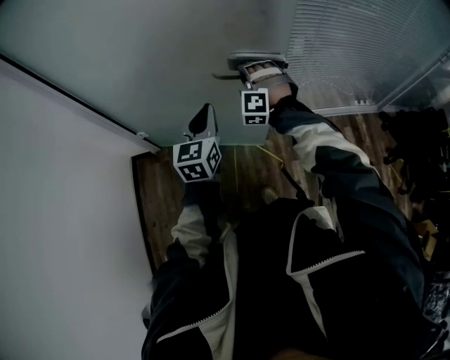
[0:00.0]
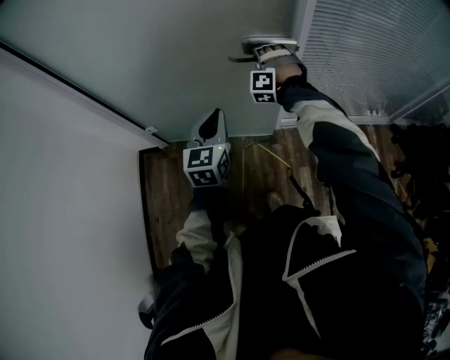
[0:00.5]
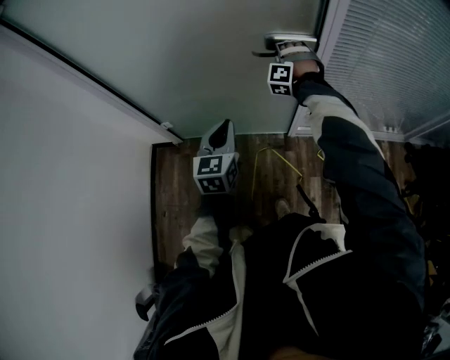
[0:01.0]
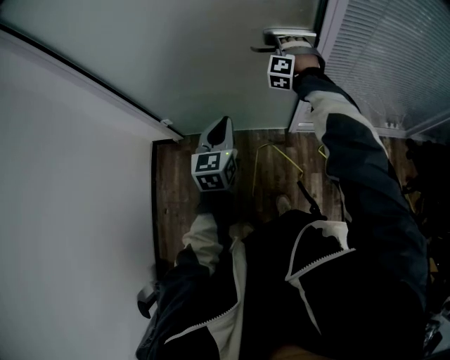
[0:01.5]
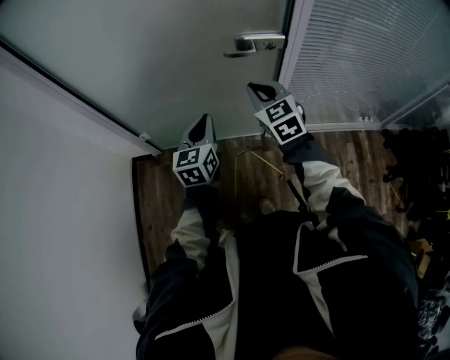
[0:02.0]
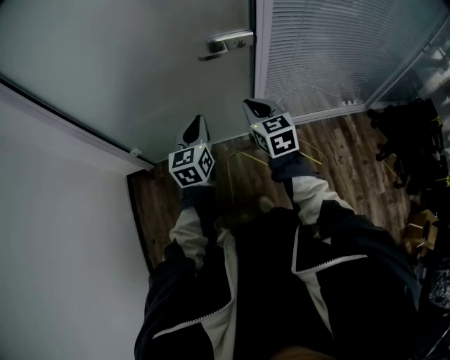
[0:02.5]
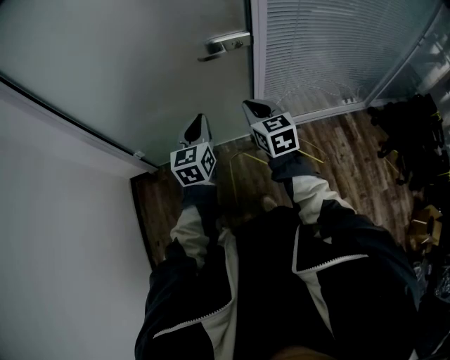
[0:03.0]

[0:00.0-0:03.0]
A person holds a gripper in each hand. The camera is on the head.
0:00.0 to 0:01.5: The right gripper heads forward, covering about 15 cm. Meanwhile the left gripper shifts by some 5 cm.
0:01.5 to 0:03.0: The left gripper ends up some 5 cm from where it was. Meanwhile the right gripper moves backward, some 30 cm, rolls clockwise, seen from behind, by about 90 degrees, and closes.

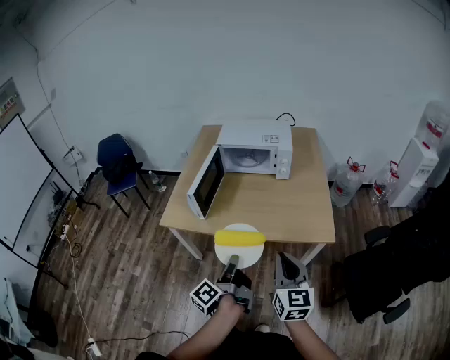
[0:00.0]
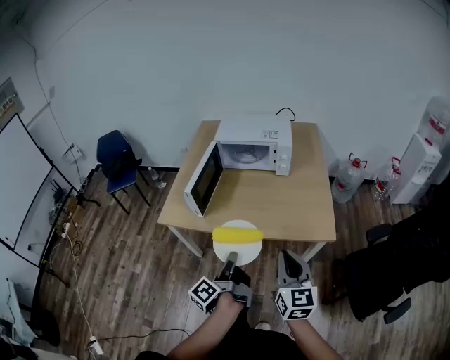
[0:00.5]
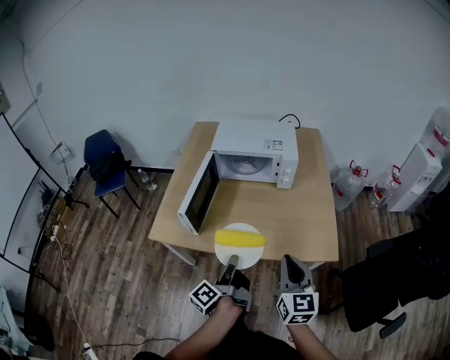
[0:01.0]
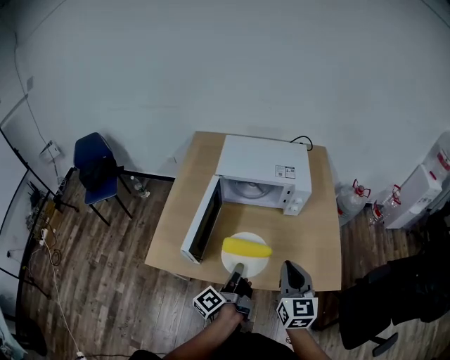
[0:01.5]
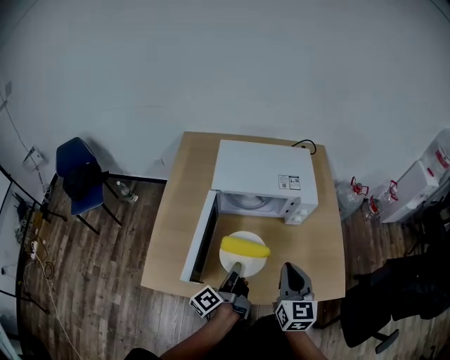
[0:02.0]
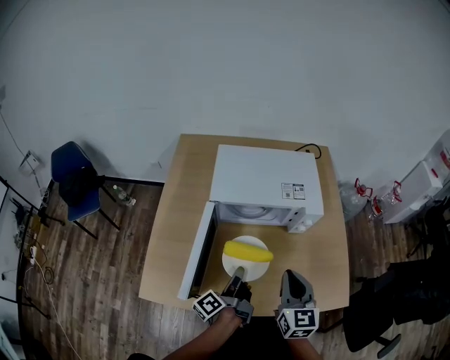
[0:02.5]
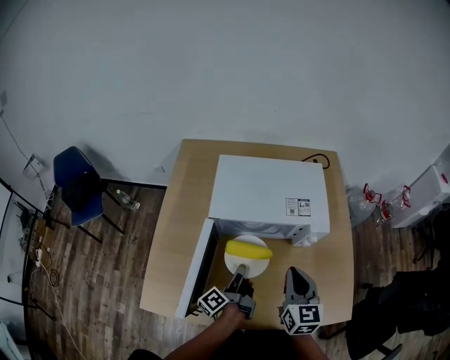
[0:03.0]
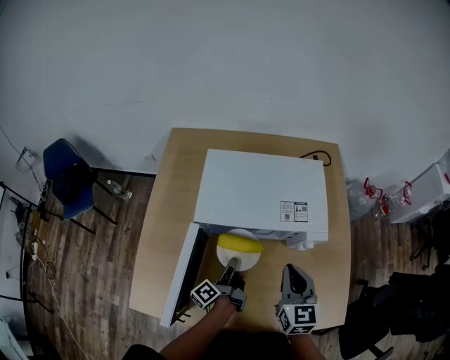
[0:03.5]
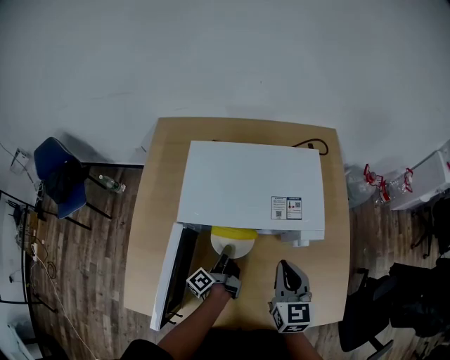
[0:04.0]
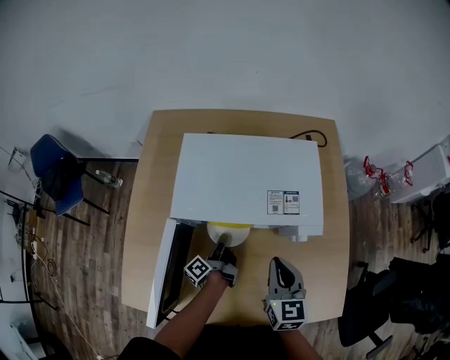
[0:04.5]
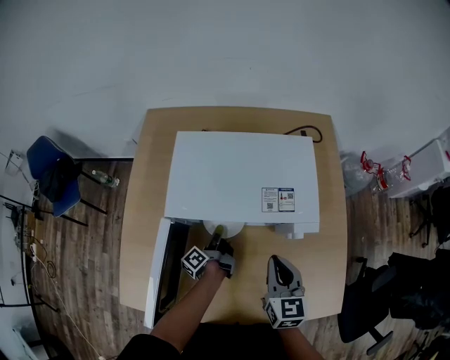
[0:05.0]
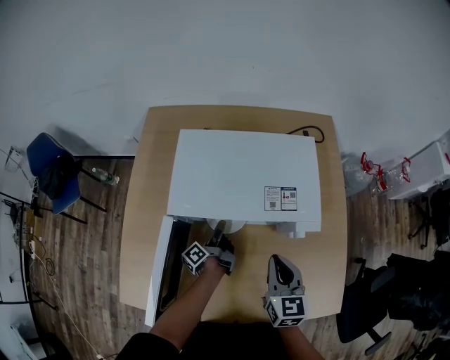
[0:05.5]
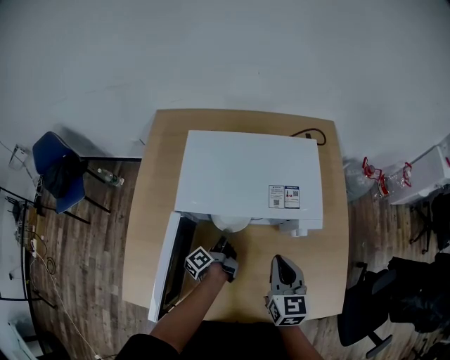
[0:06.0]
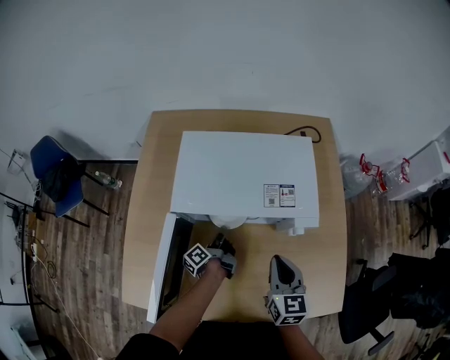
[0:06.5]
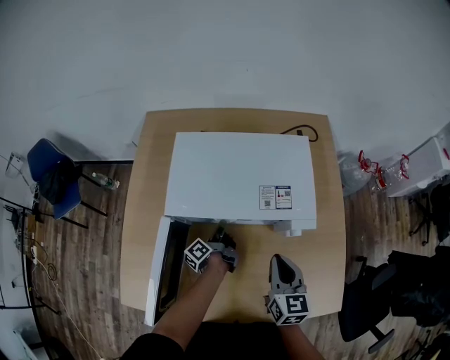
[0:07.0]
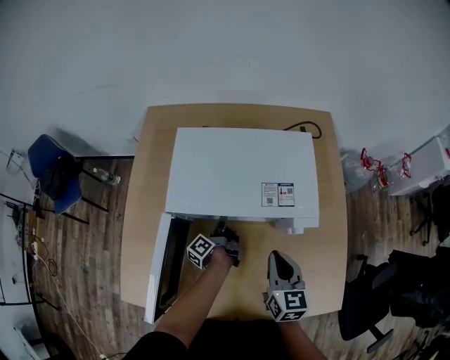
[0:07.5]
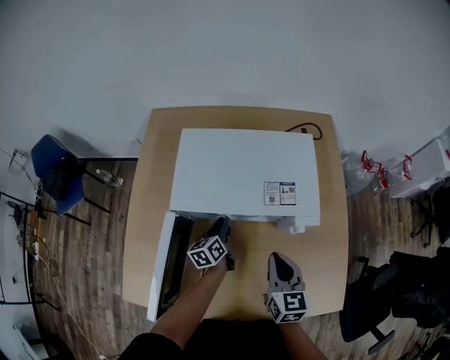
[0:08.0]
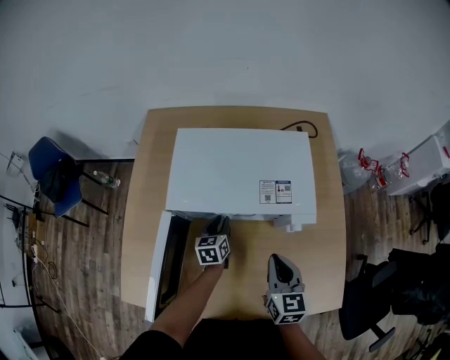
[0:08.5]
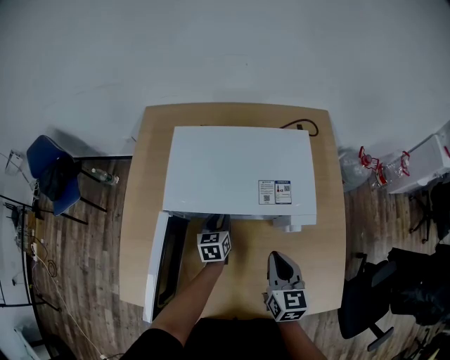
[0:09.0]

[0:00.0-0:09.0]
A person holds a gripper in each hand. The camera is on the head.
0:00.0 to 0:02.0: Both grippers travel together forward, roughly 35 cm.
0:02.0 to 0:04.5: Both grippers move forward and downward, about 25 cm.
0:04.5 to 0:07.0: The left gripper opens and closes again.
0:07.0 to 0:09.0: The left gripper rolls clockwise, seen from behind, by about 70 degrees.

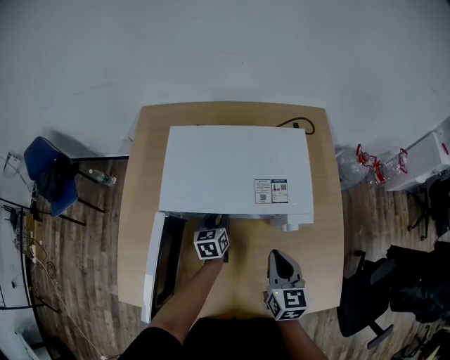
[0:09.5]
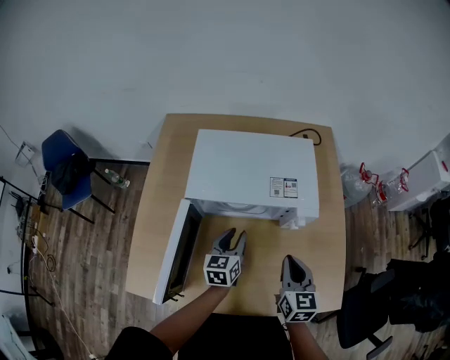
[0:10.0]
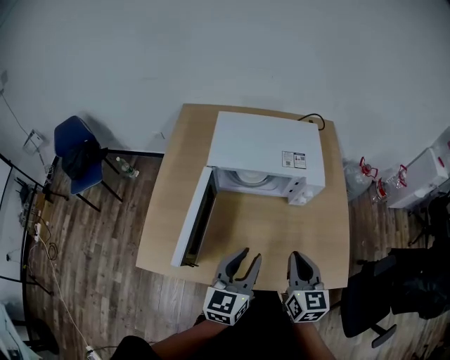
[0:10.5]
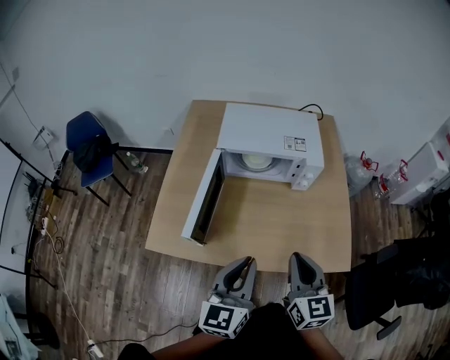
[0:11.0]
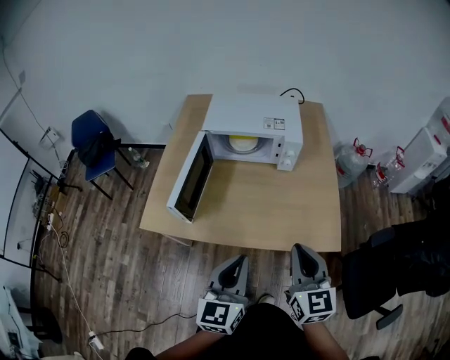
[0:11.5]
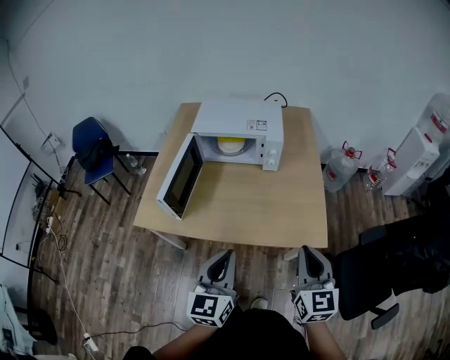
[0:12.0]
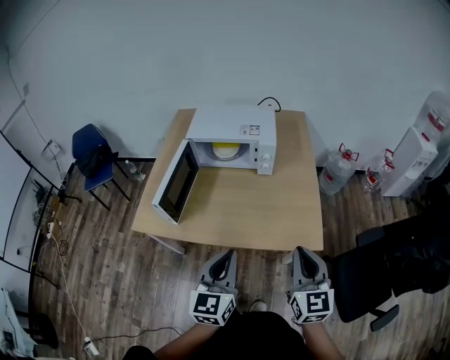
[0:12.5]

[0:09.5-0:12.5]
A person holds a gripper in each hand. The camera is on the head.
0:09.5 to 0:11.0: The left gripper moves backward and upward, some 50 cm, and turns by about 30 degrees. The right gripper moves backward and upward, some 30 cm.
0:11.0 to 0:12.5: Both grippers travel together to the right and backward, approximately 20 cm.

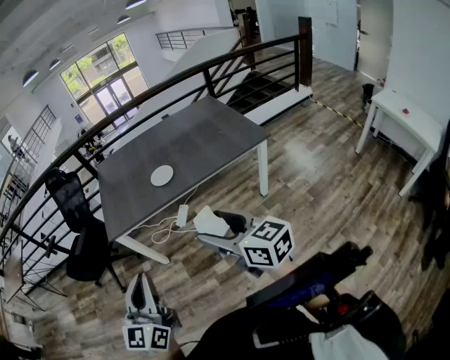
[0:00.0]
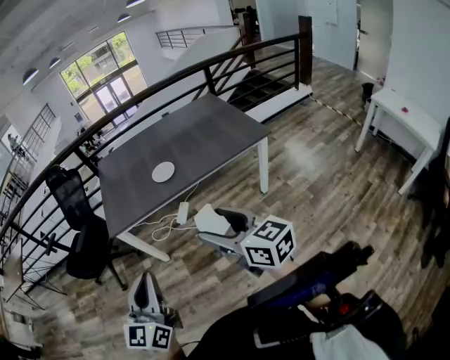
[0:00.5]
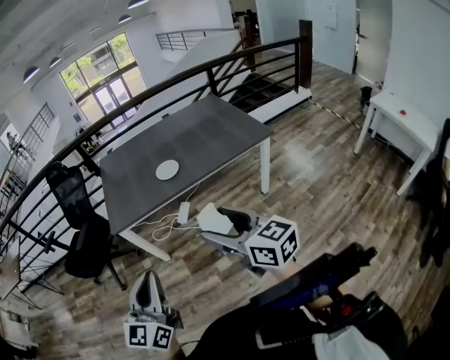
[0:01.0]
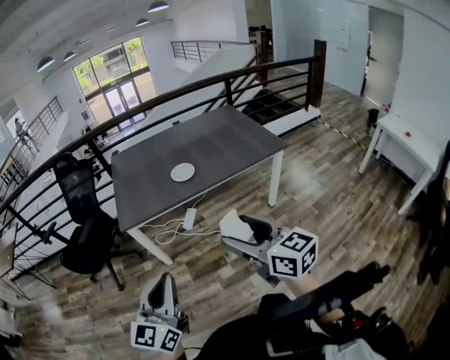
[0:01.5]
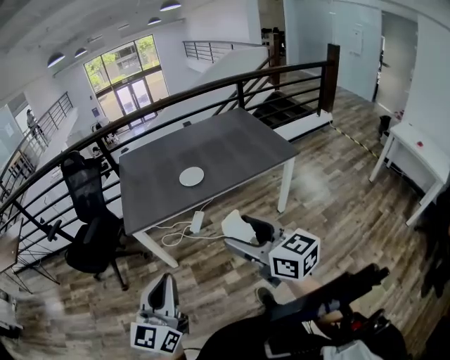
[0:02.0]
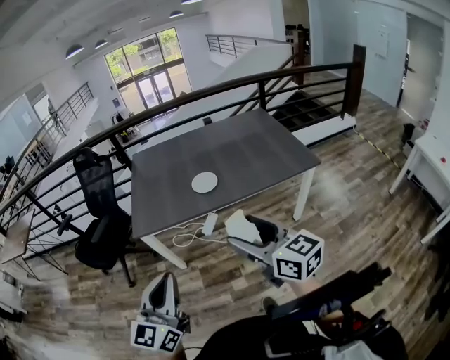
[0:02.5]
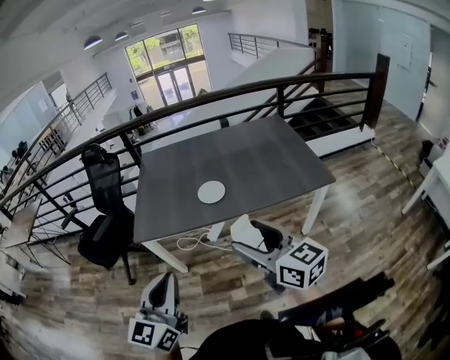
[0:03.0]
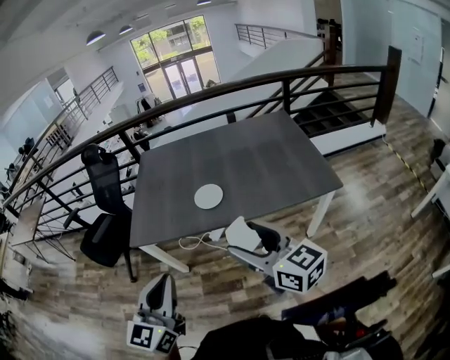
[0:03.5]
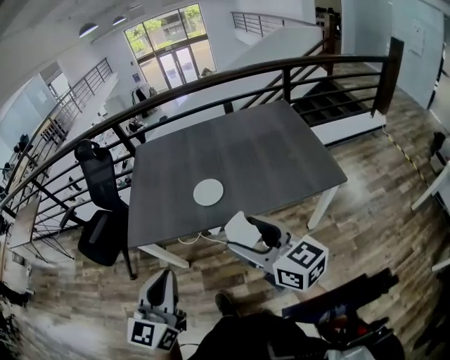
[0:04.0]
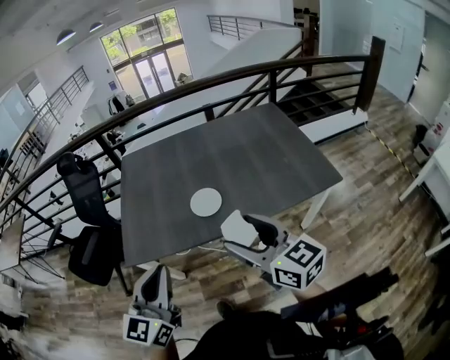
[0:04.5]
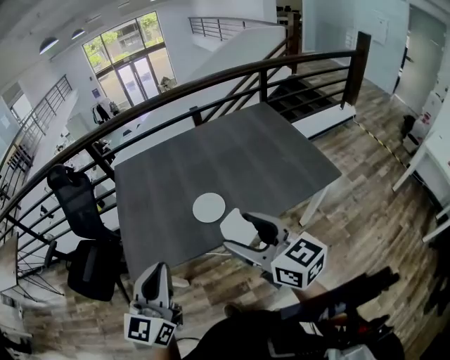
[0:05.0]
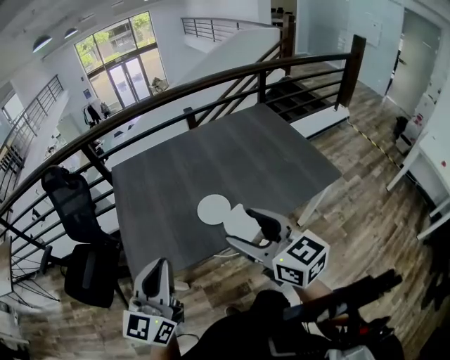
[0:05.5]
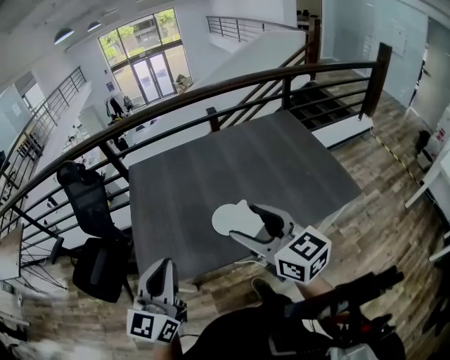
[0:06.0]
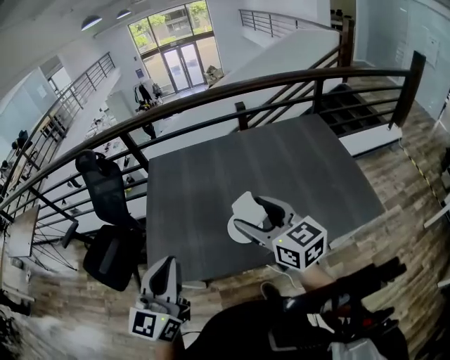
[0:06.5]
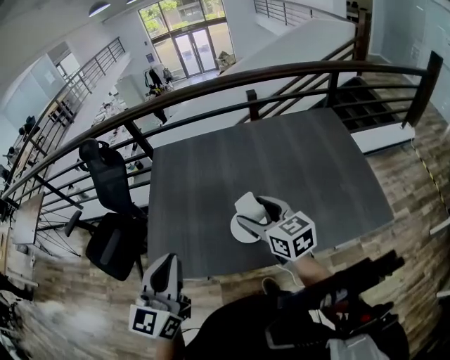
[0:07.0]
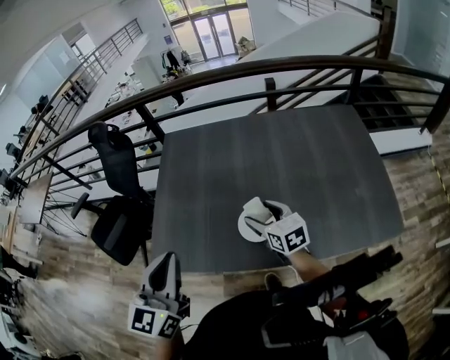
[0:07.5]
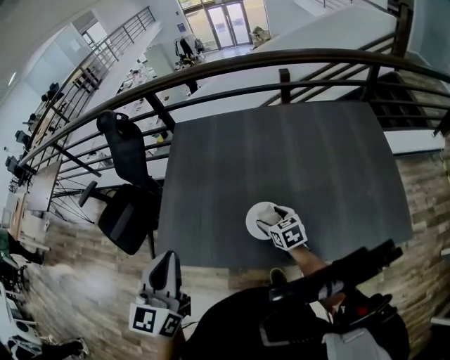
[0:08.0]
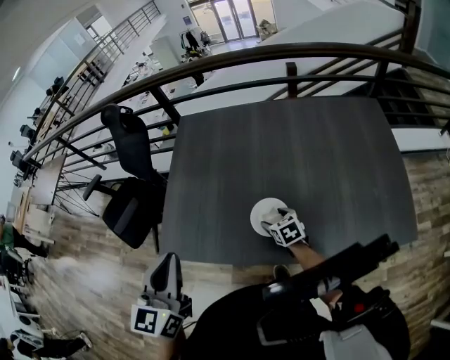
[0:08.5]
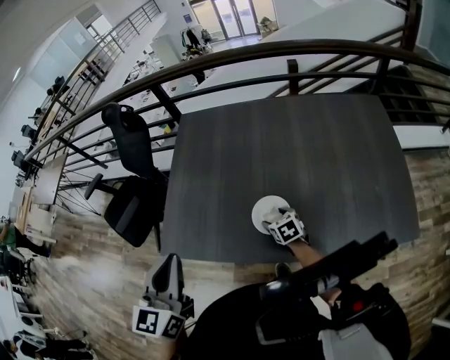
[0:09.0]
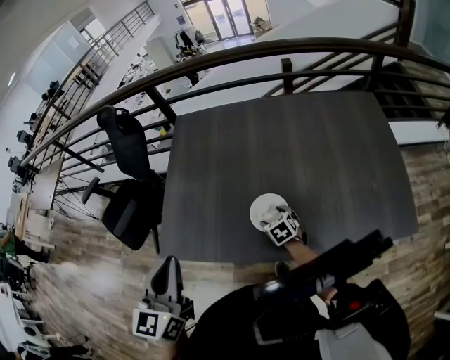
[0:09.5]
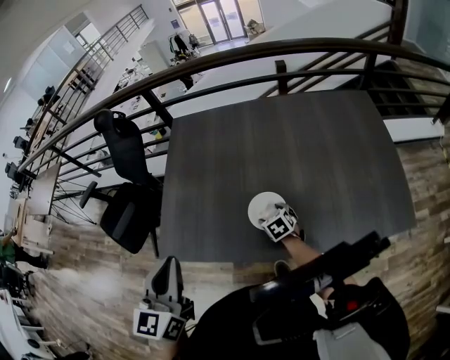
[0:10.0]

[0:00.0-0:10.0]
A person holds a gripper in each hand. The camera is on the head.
0:00.0 to 0:02.0: Both grippers travel together to the left, roughly 10 cm.
0:02.0 to 0:04.0: Both grippers move forward and to the right, about 35 cm.
0:04.0 to 0:06.0: Both grippers move forward and to the left, about 30 cm.
0:06.0 to 0:08.0: The left gripper goes roughly 10 cm forward, and swivels roughly 20 degrees, while the right gripper shifts about 40 cm downward and forward, and tilts its fingers some 30 degrees downward.
0:08.0 to 0:10.0: The right gripper moves downward, about 10 cm.

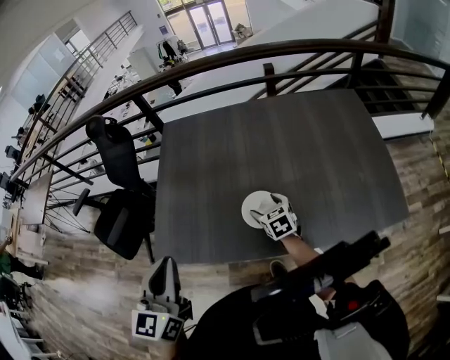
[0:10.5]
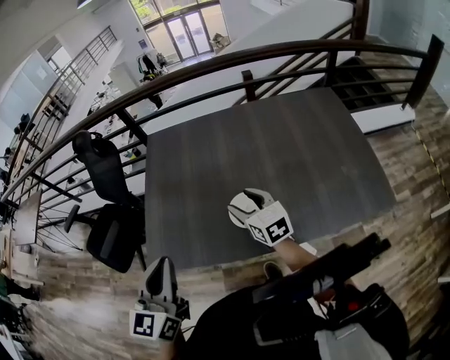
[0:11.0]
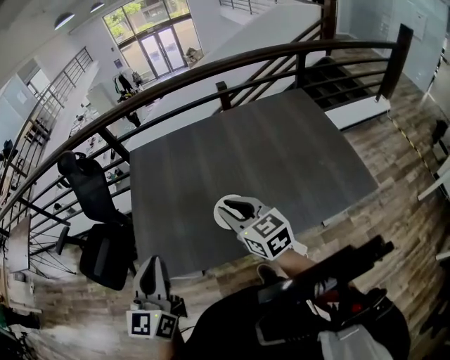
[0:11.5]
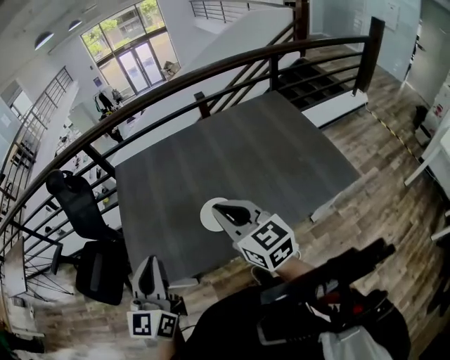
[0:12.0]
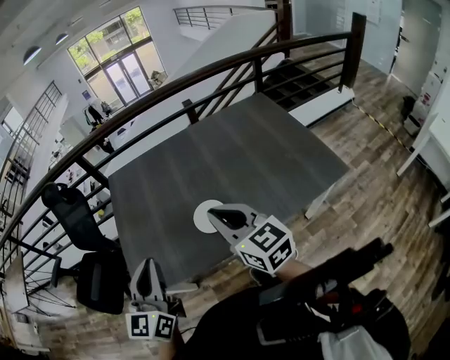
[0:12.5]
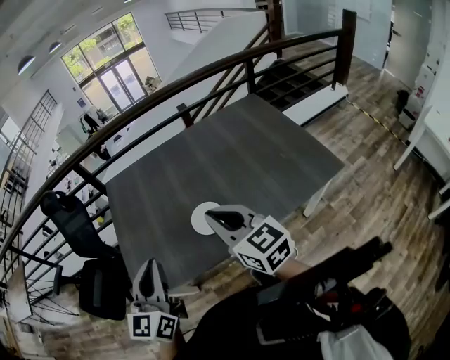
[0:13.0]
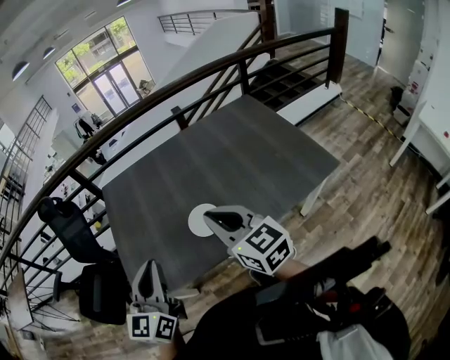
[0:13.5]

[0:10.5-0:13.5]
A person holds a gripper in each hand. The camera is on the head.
0:10.5 to 0:12.0: The left gripper shifts by about 5 cm. Meanwhile the right gripper is displaced upward and backward by some 35 cm, angles its fingers upward, by some 30 degrees, and closes its fingers.
0:12.0 to 0:13.5: There are only small adjustments of the grippers.
